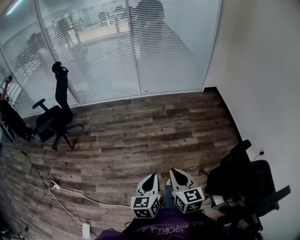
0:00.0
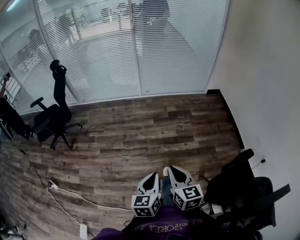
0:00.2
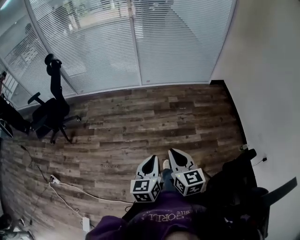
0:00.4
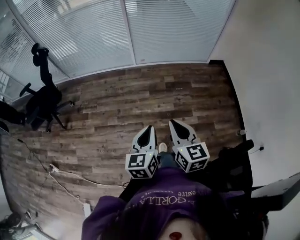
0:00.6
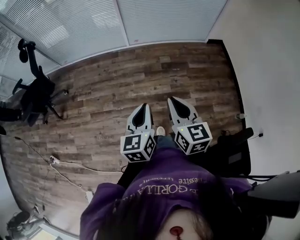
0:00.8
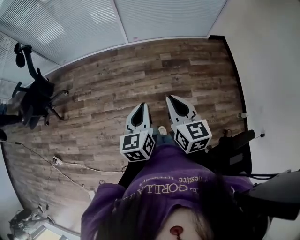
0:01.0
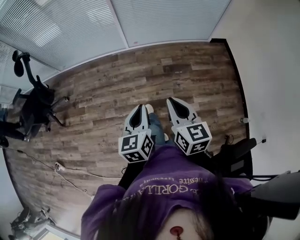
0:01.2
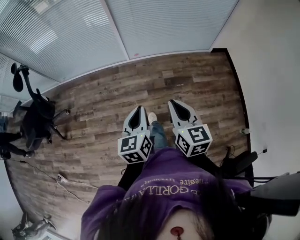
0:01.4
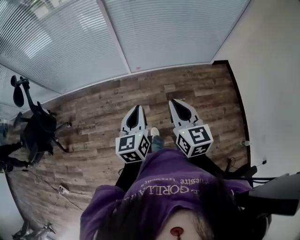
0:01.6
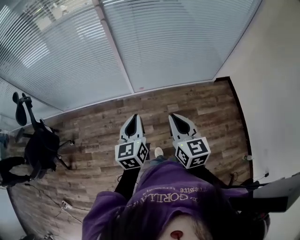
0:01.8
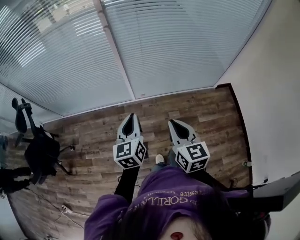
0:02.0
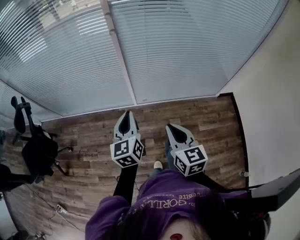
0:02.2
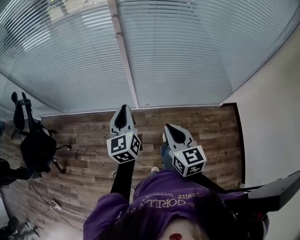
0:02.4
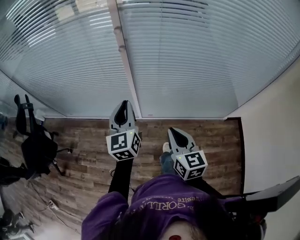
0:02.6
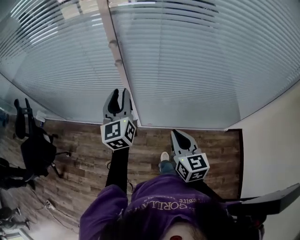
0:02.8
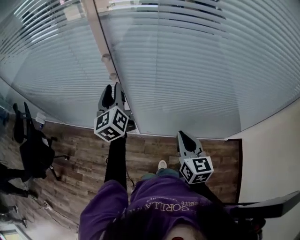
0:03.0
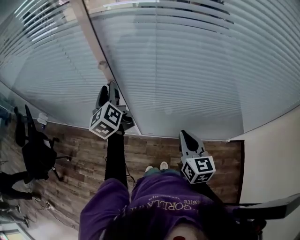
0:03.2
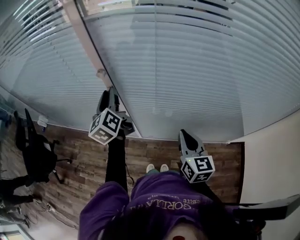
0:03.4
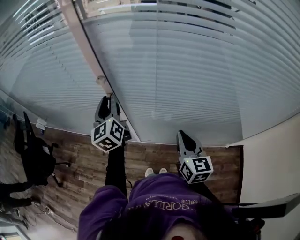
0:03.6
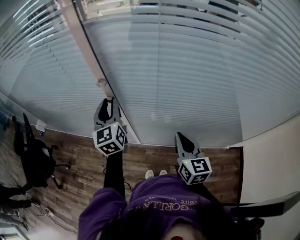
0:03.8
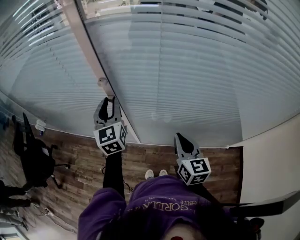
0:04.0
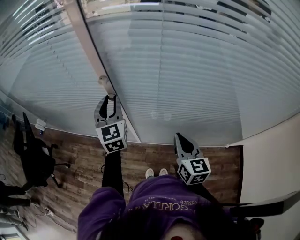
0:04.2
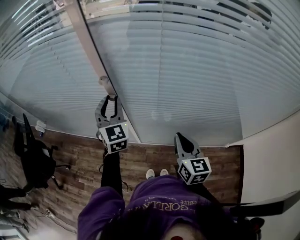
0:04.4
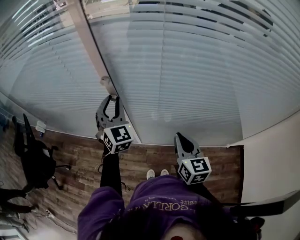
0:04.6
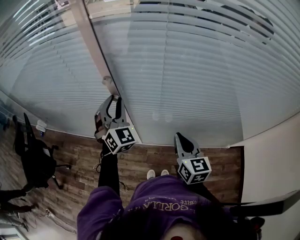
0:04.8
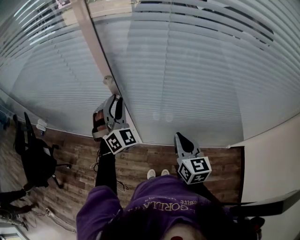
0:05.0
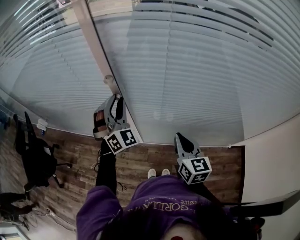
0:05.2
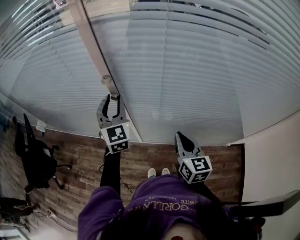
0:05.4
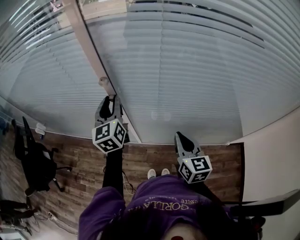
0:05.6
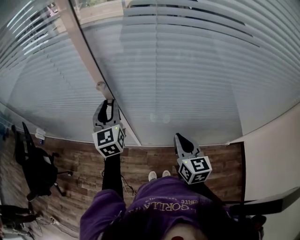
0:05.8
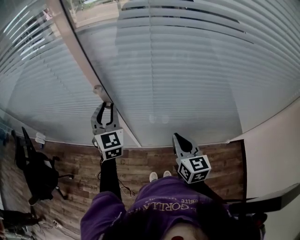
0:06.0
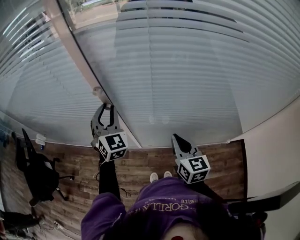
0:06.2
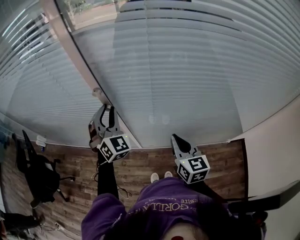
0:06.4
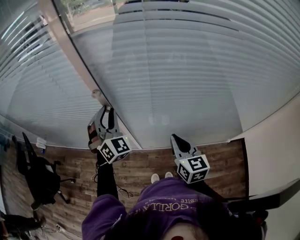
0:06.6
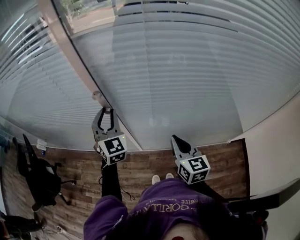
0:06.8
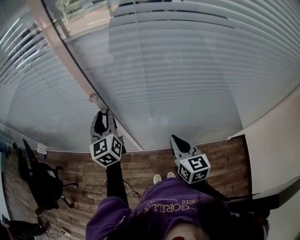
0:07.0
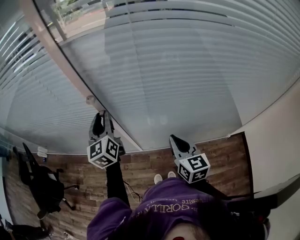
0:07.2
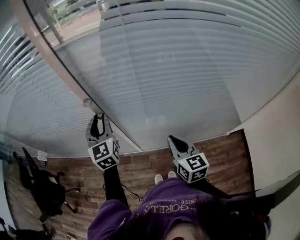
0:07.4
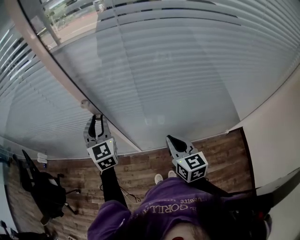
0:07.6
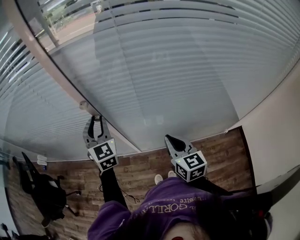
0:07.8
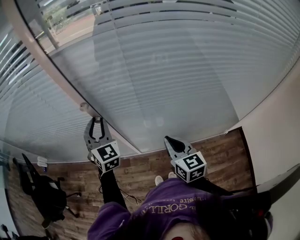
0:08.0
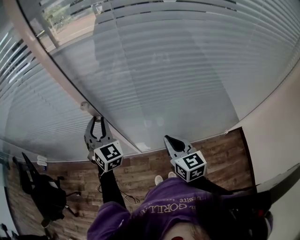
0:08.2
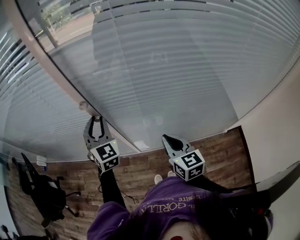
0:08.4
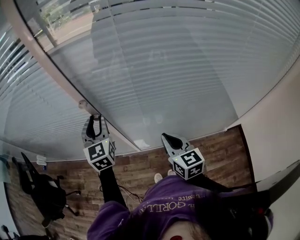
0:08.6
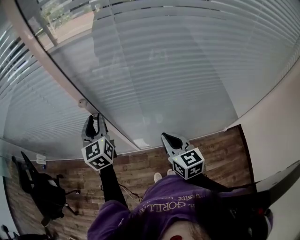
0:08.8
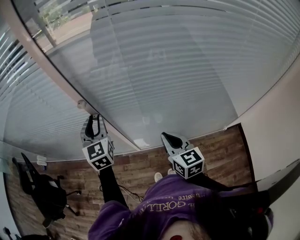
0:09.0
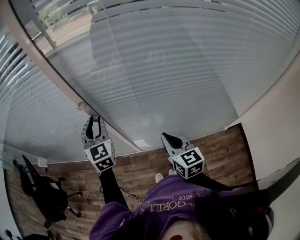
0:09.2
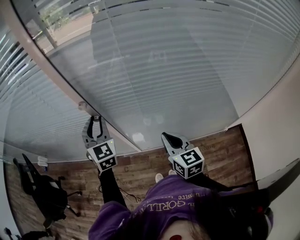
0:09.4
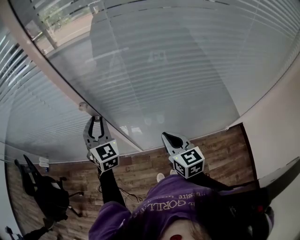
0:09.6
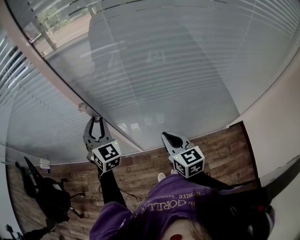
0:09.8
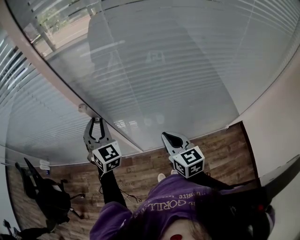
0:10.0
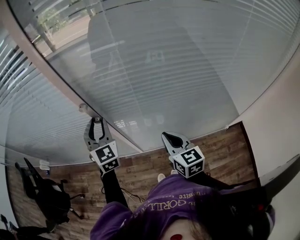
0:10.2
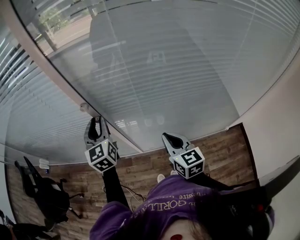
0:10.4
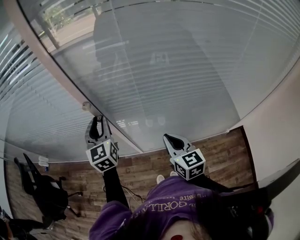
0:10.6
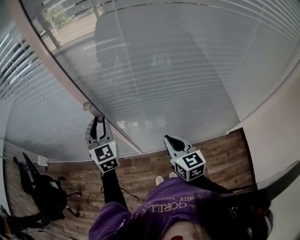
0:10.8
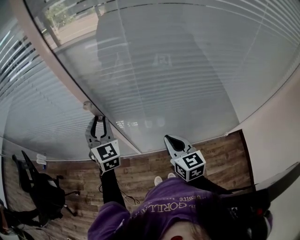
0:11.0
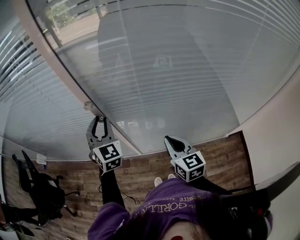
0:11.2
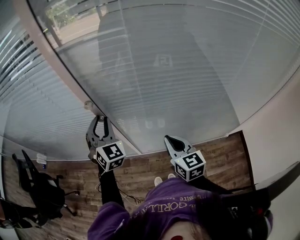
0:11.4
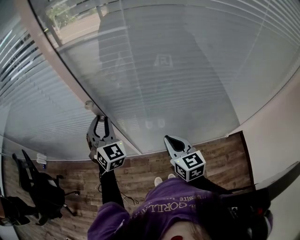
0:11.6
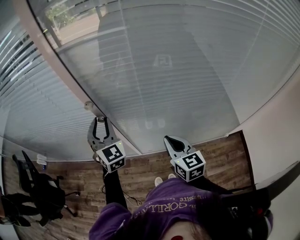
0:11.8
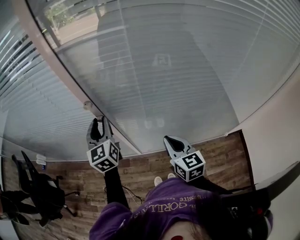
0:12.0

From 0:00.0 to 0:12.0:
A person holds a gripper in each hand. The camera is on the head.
From 0:00.0 to 0:01.6: Both grippers are carried forward, approximately 70 cm.
From 0:01.6 to 0:03.0: The pair of grippers is taken forward, some 50 cm. The left gripper swivels approximately 30 degrees, and opens its fingers.
From 0:03.0 to 0:04.4: The right gripper moves forward, roughly 10 cm. The left gripper shifts by approximately 5 cm, and twists approximately 40 degrees clockwise, seen from behind.

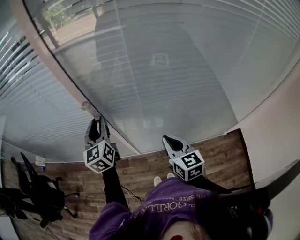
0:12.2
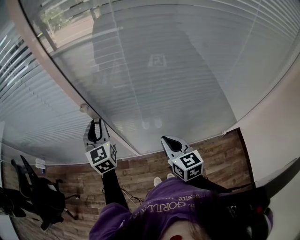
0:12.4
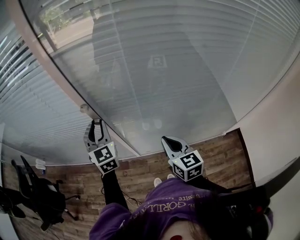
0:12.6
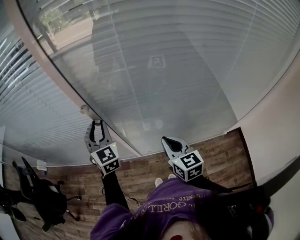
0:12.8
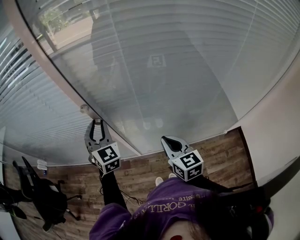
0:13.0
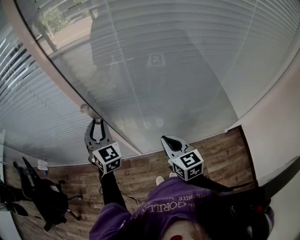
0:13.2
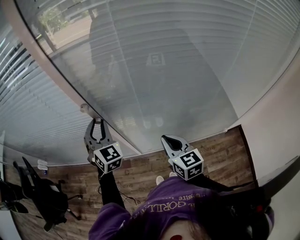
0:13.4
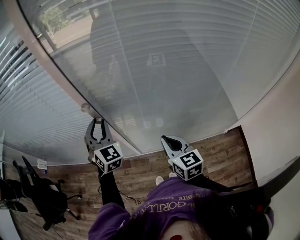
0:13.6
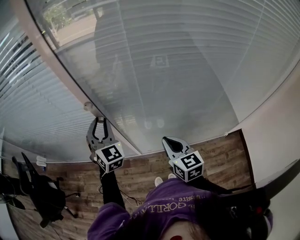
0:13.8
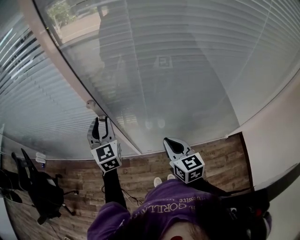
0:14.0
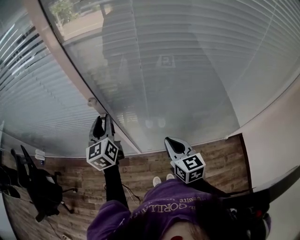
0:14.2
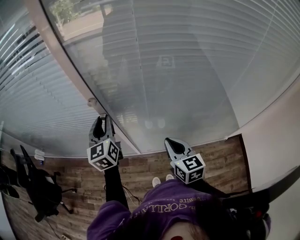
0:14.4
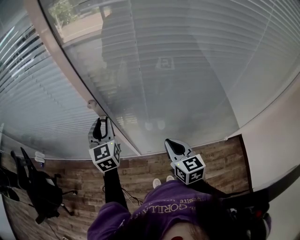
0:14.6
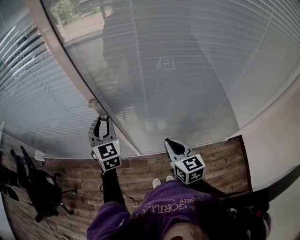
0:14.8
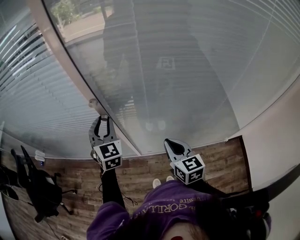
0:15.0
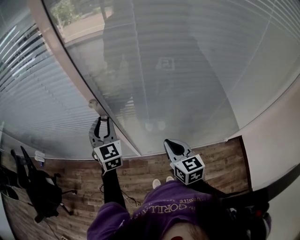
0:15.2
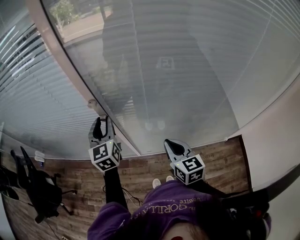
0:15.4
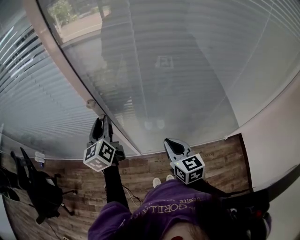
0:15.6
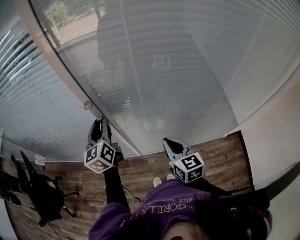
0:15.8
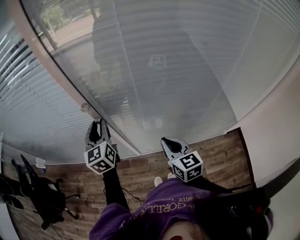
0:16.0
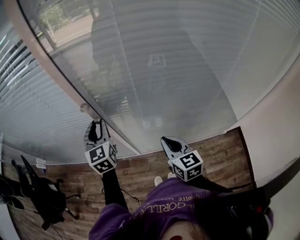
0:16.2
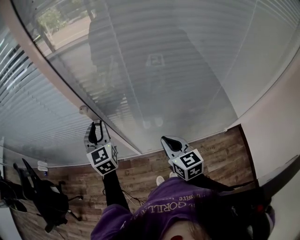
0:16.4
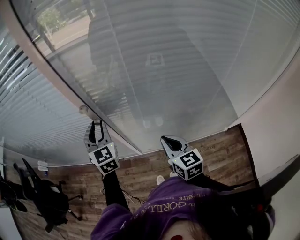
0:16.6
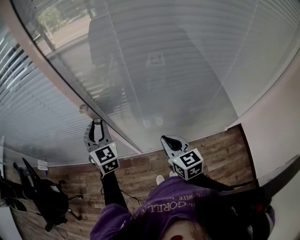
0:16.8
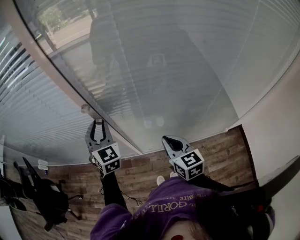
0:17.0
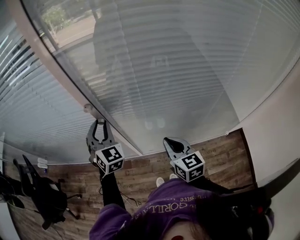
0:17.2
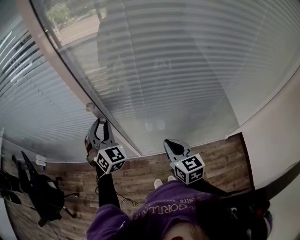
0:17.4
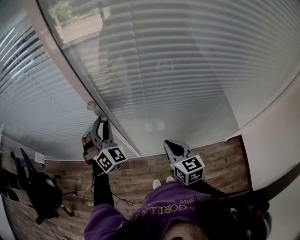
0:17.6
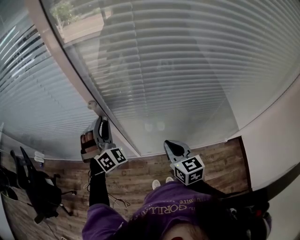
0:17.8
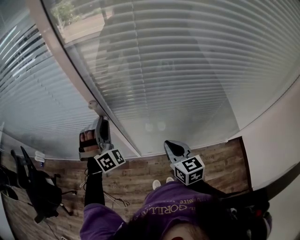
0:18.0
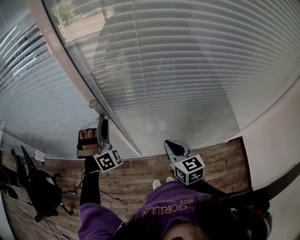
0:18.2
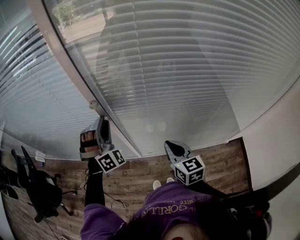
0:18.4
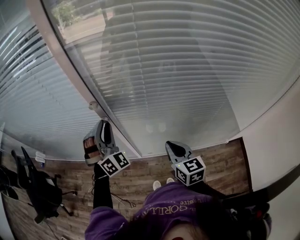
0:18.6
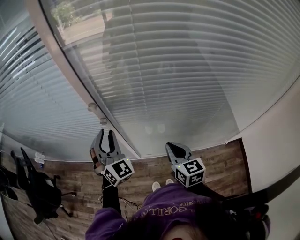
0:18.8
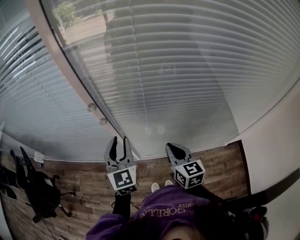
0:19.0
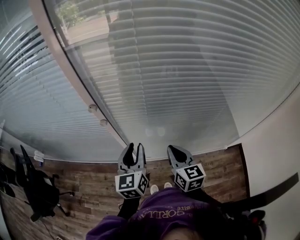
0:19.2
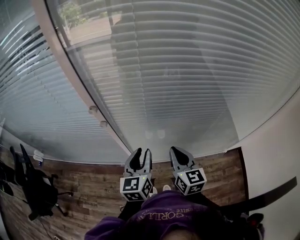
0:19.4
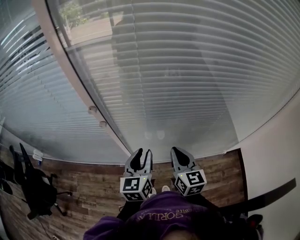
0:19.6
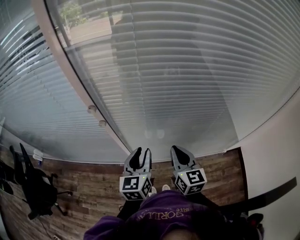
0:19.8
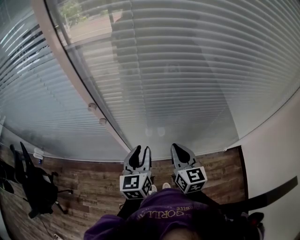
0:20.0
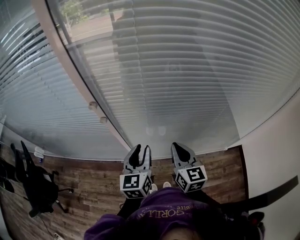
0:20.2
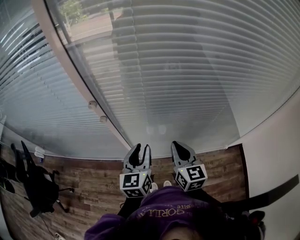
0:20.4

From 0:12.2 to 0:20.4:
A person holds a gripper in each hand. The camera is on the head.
From 0:12.2 to 0:13.8: The left gripper rolls clockwise, seen from behind, by roughly 40 degrees.
From 0:13.8 to 0:15.4: The left gripper rotates roughly 30 degrees.
From 0:15.4 to 0:17.2: The left gripper rotates roughly 40 degrees.
From 0:18.8 to 0:20.4: The left gripper heads to the right and backward, covering some 15 cm, and rotates around the line of its fingers by about 50 degrees, counterclockwise from behind.

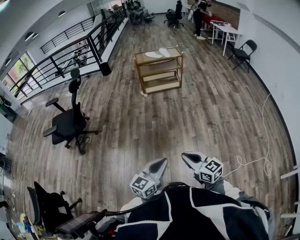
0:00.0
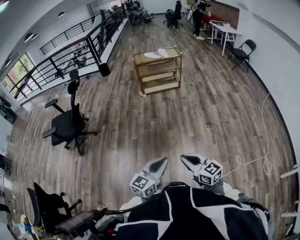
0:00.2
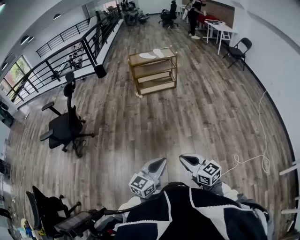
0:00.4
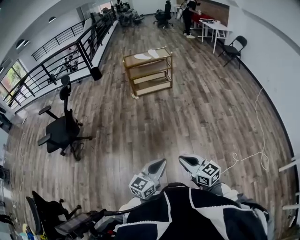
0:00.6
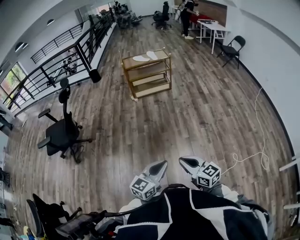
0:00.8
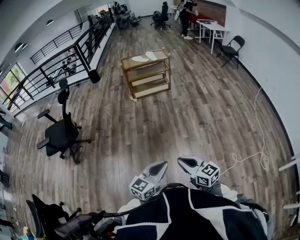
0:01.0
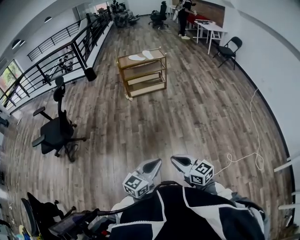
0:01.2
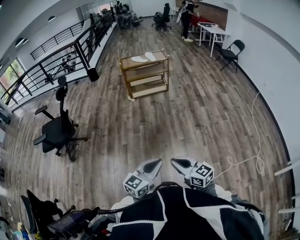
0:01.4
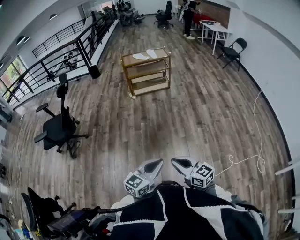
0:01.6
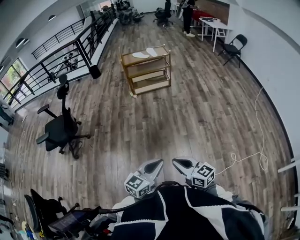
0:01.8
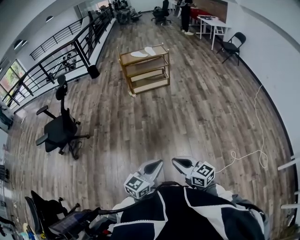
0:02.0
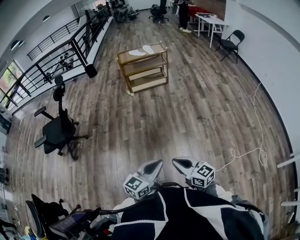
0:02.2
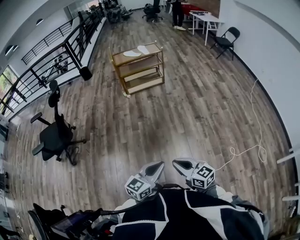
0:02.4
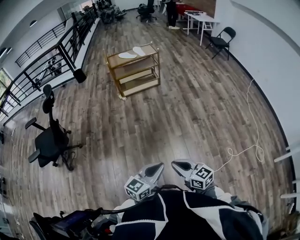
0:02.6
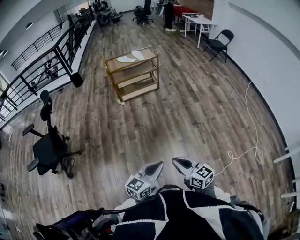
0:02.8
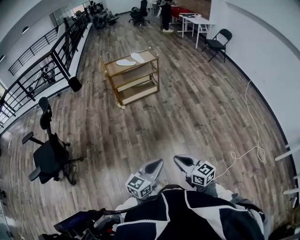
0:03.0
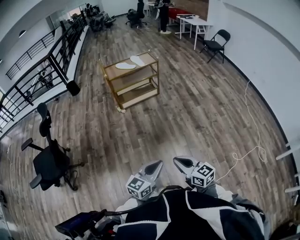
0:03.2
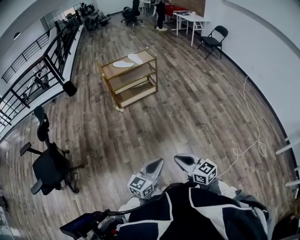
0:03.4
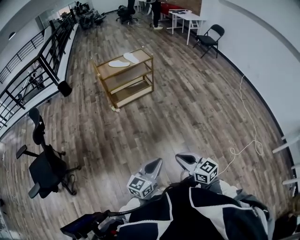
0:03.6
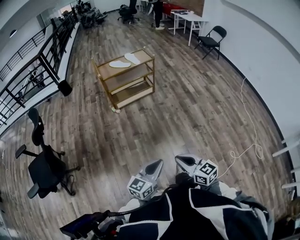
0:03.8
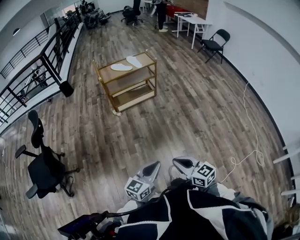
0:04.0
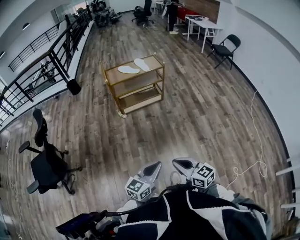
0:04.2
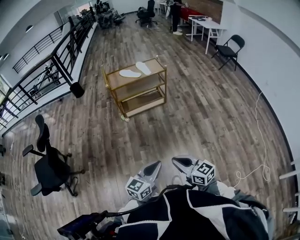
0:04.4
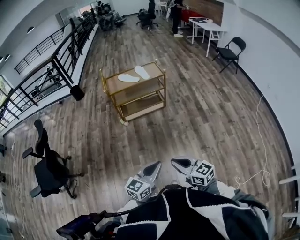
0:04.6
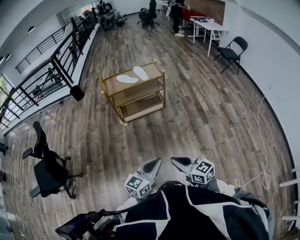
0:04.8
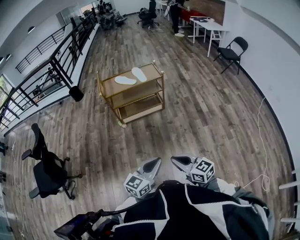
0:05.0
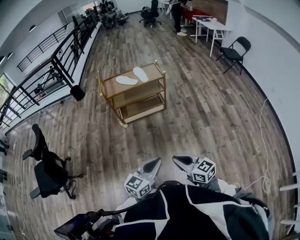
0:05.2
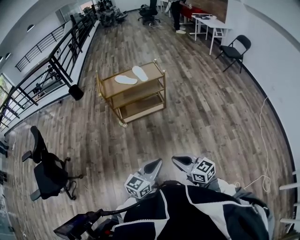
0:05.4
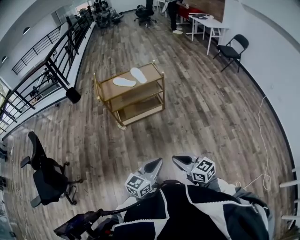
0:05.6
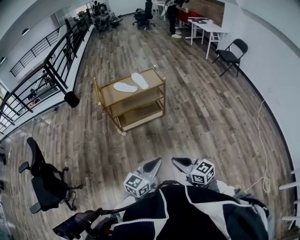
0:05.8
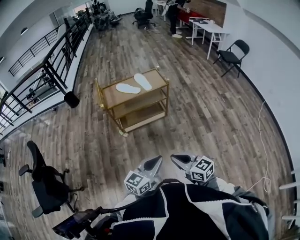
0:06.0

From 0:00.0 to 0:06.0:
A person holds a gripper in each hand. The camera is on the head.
From 0:00.0 to 0:01.6: The left gripper goes some 5 cm to the right.
From 0:01.6 to 0:03.0: The left gripper goes about 20 cm forward and to the left, while the right gripper goes some 20 cm forward.
From 0:03.0 to 0:04.4: The two grippers go about 20 cm forward.
From 0:04.4 to 0:06.0: Both grippers move forward, approximately 25 cm.
